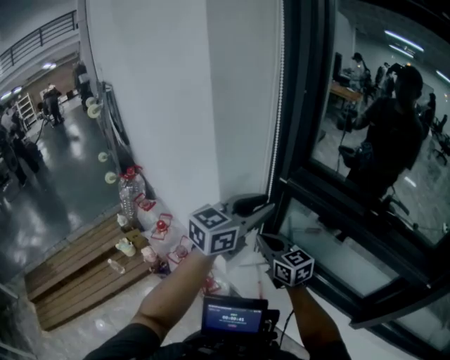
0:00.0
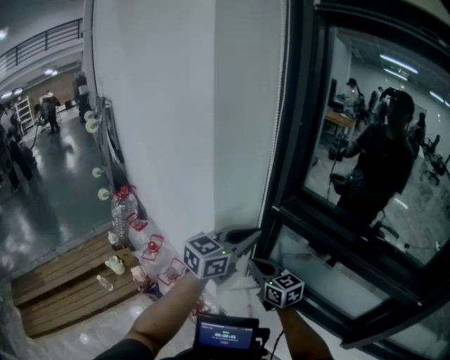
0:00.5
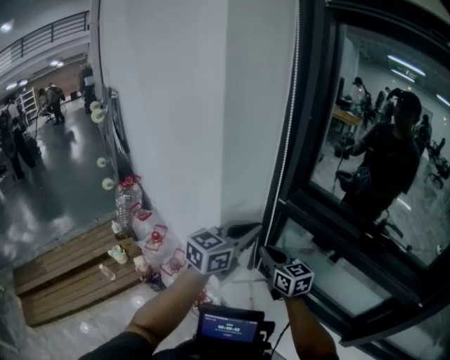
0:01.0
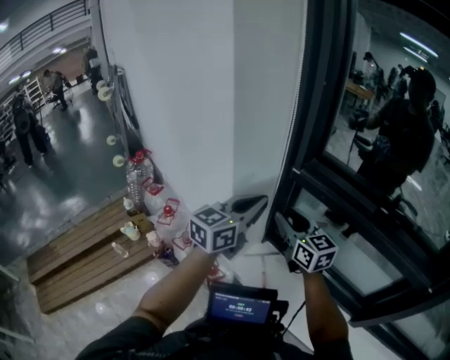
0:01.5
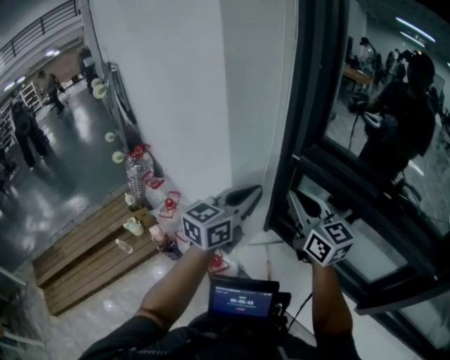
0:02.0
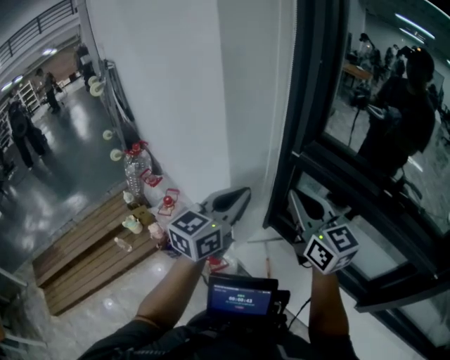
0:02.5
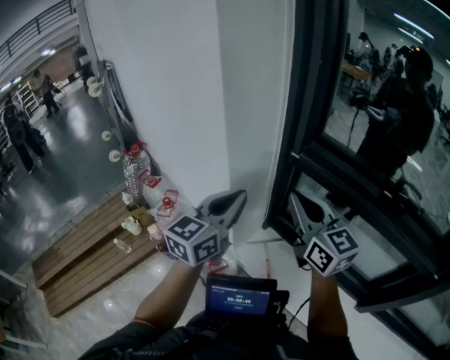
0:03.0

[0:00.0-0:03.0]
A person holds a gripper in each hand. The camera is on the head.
0:00.0 to 0:01.5: The right gripper is displaced upward by roughly 5 cm, and opens its fingers; the left gripper shifts by approximately 5 cm, and closes its fingers.
0:01.5 to 0:03.0: The right gripper heads upward, covering approximately 10 cm, and closes its fingers. The left gripper changes place by approximately 5 cm.

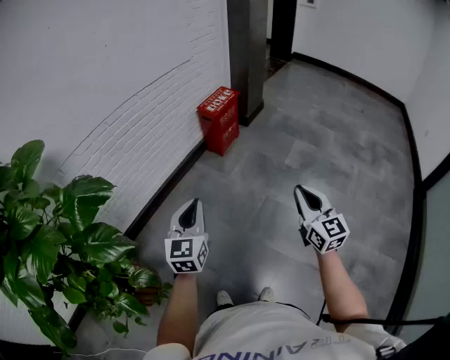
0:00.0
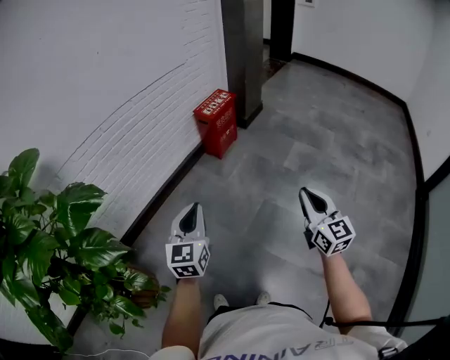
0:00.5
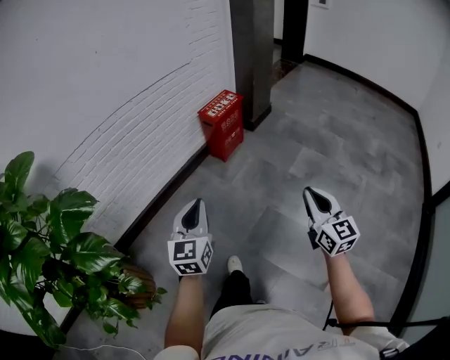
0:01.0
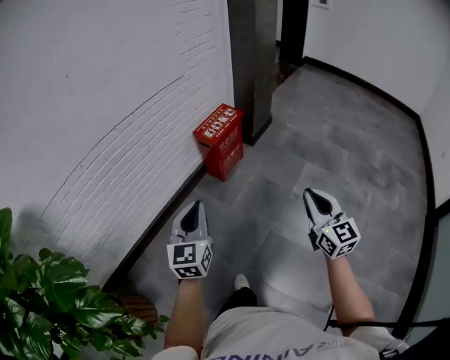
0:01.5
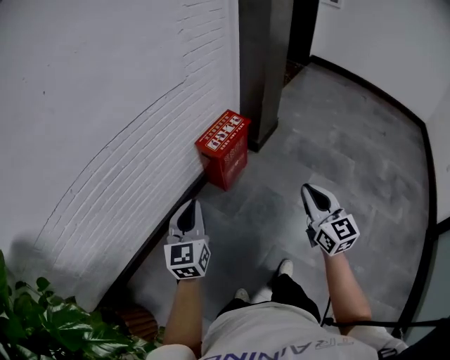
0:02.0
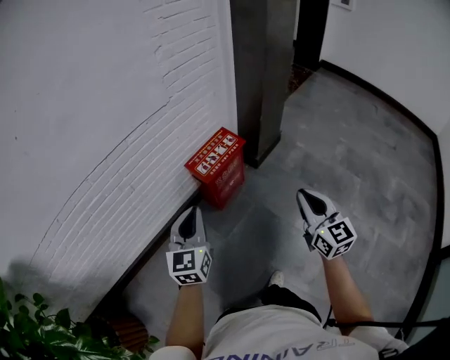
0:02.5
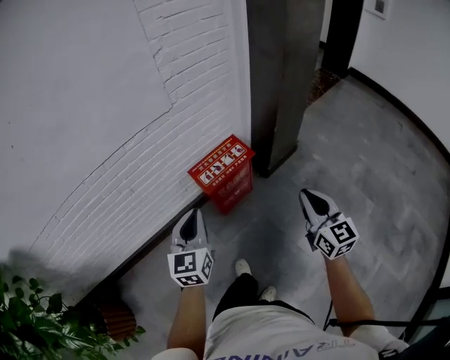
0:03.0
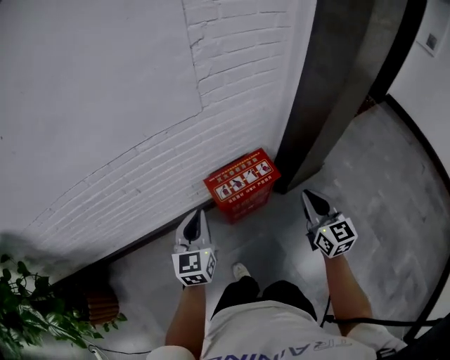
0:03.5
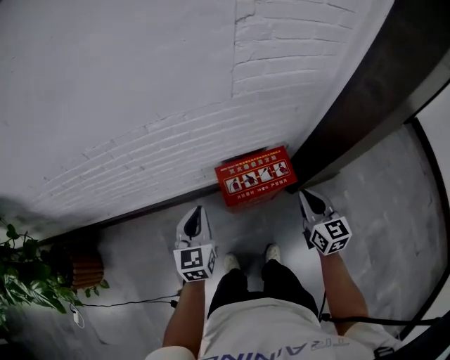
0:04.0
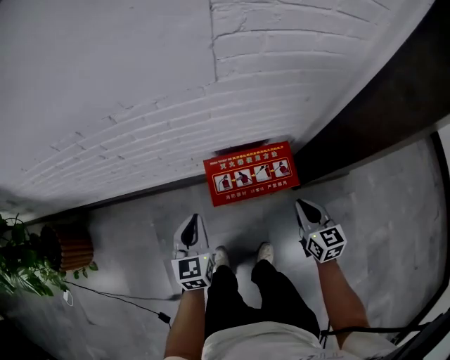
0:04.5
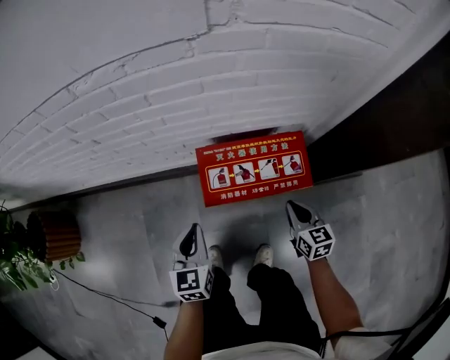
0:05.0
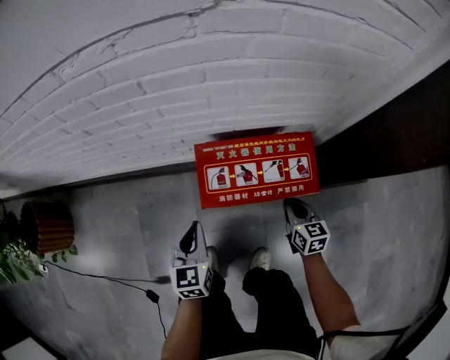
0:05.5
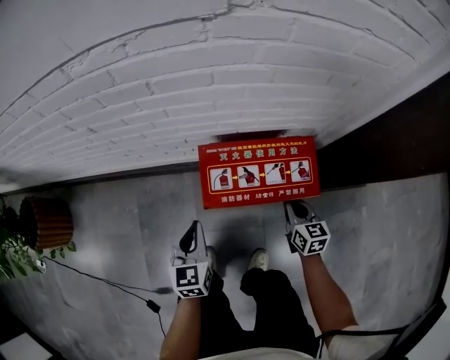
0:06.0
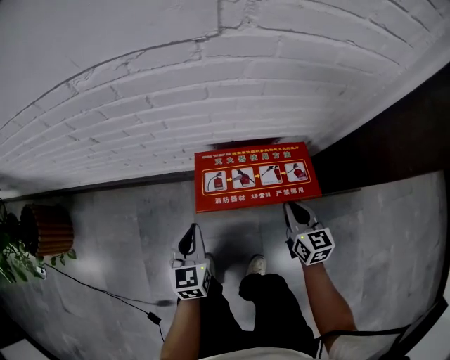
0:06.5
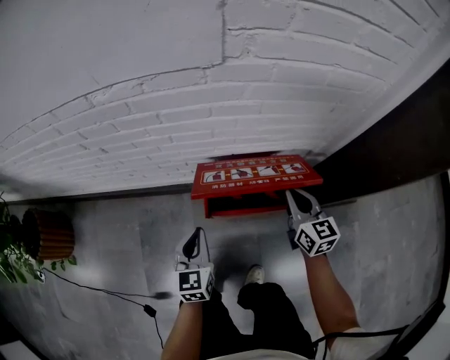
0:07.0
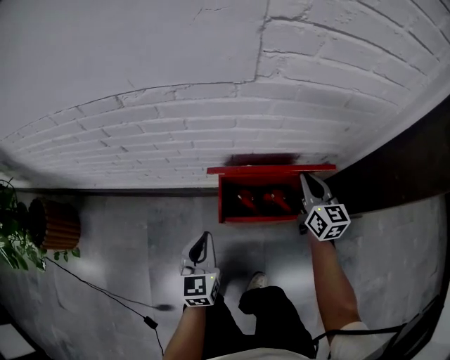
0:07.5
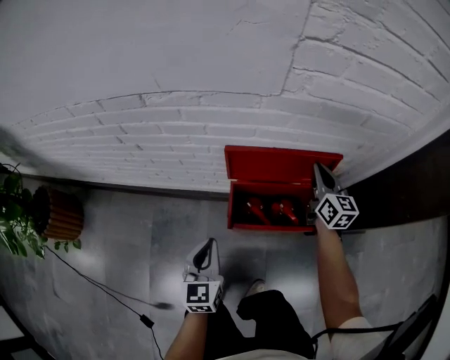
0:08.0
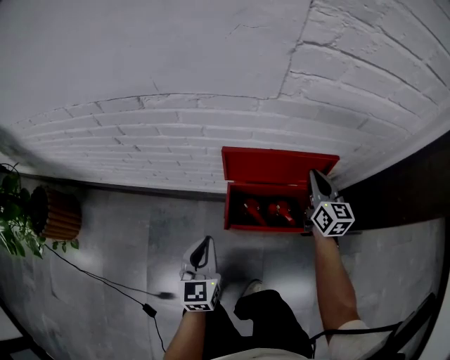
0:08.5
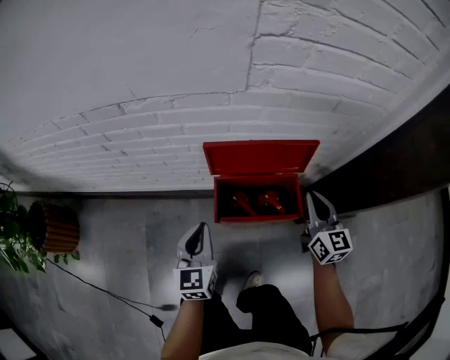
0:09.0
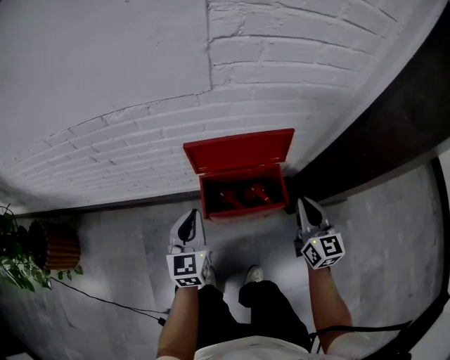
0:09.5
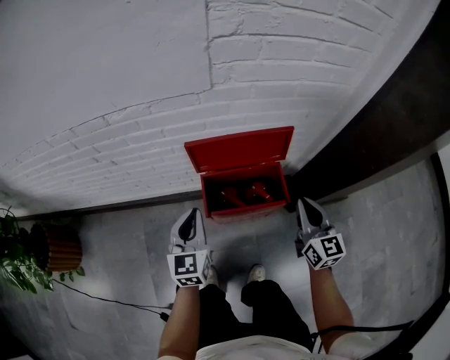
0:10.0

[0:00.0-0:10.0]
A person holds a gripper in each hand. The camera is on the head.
0:00.0 to 0:02.0: The pair of grippers is taken forward, roughly 50 cm.
0:02.0 to 0:04.0: The right gripper ends up some 60 cm from where it was, and changes its angle by roughly 40 degrees, while the left gripper shifts by roughly 40 cm, and turns by about 40 degrees.
0:04.0 to 0:06.0: The two grippers go approximately 35 cm downward.
0:06.0 to 0:08.0: The left gripper is displaced upward by roughly 10 cm. Meanwhile the right gripper shifts roughly 30 cm upward and forward, and turns by roughly 20 degrees.
0:08.0 to 0:10.0: The left gripper shifts about 5 cm upward; the right gripper travels backward by about 20 cm.

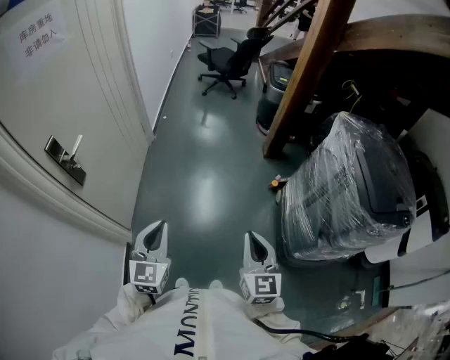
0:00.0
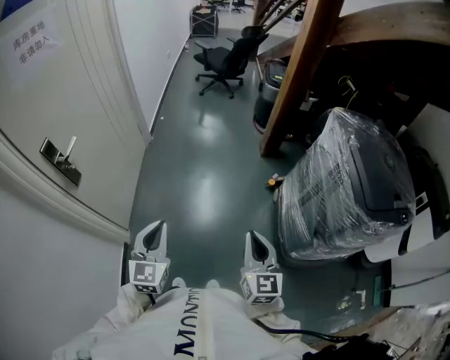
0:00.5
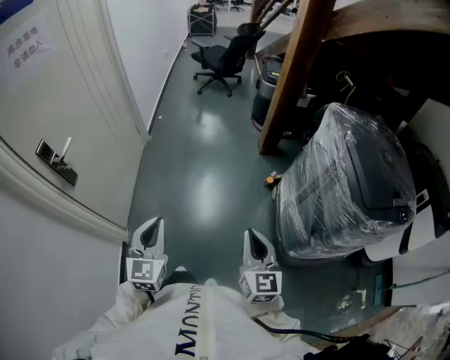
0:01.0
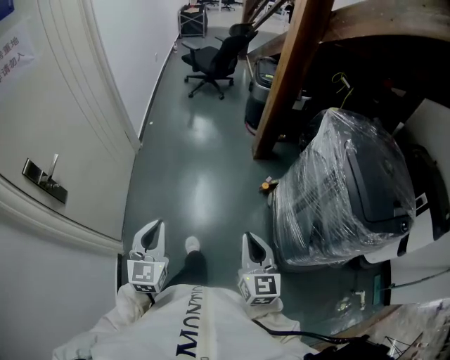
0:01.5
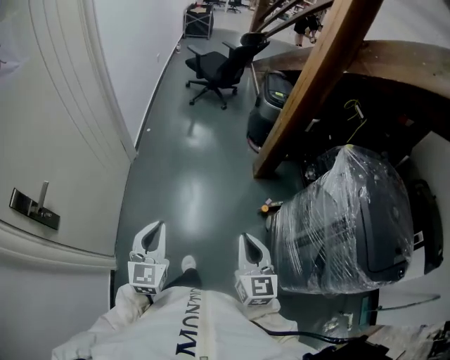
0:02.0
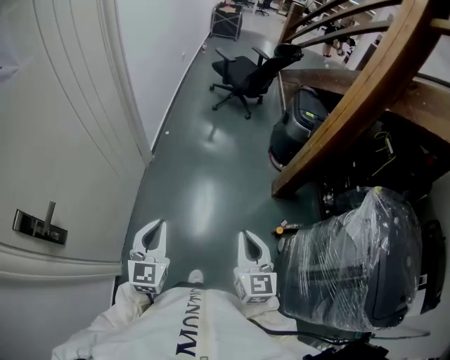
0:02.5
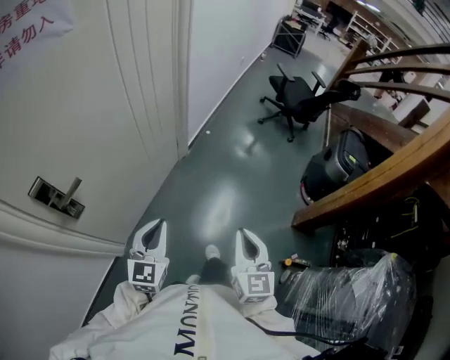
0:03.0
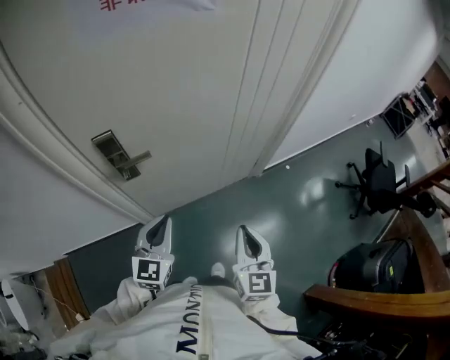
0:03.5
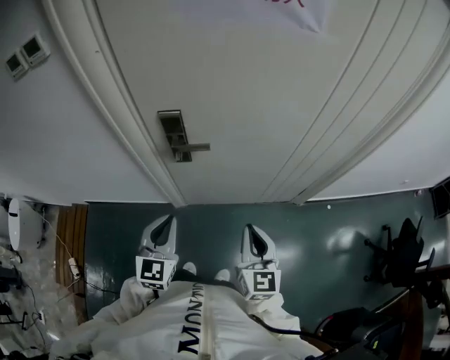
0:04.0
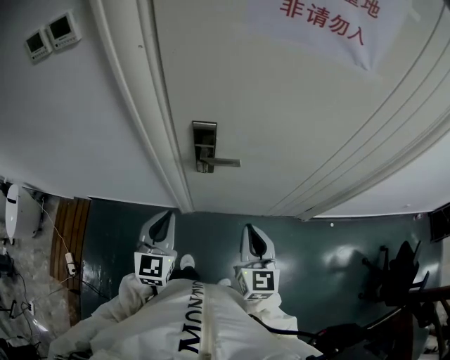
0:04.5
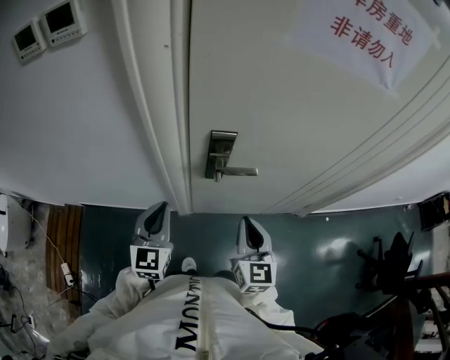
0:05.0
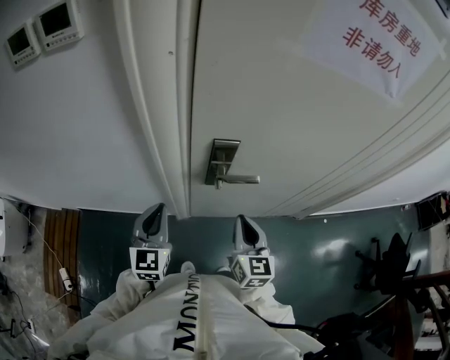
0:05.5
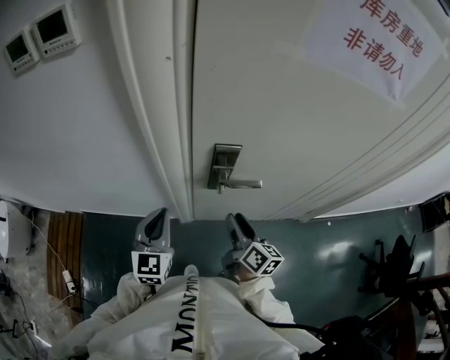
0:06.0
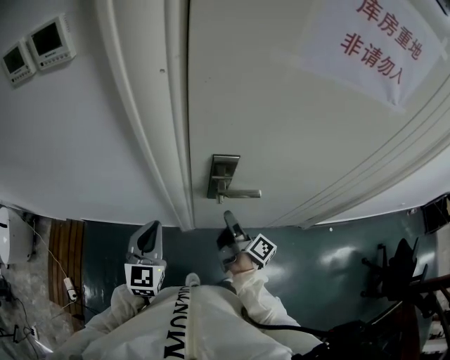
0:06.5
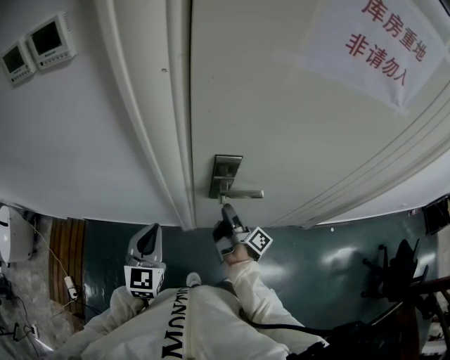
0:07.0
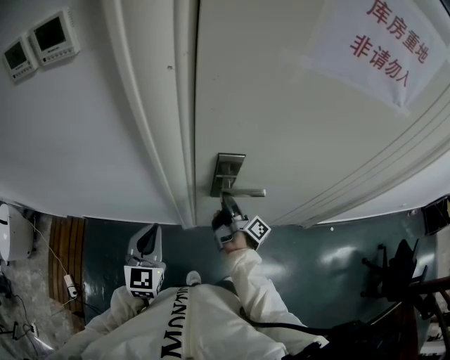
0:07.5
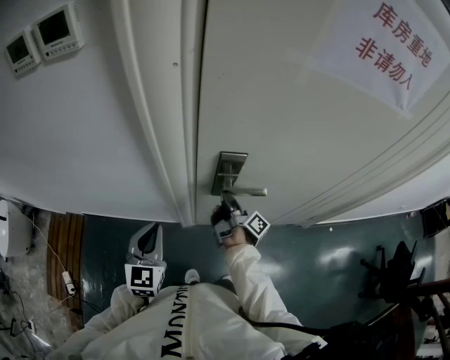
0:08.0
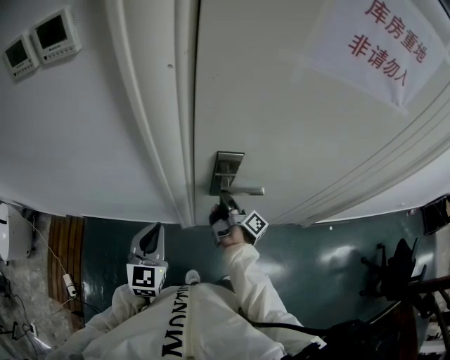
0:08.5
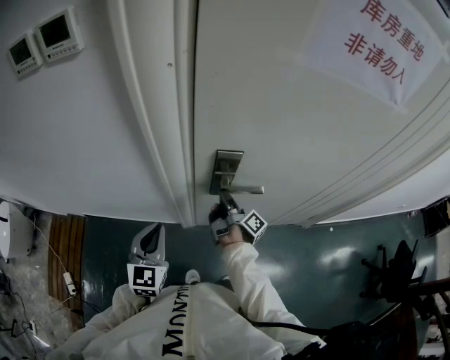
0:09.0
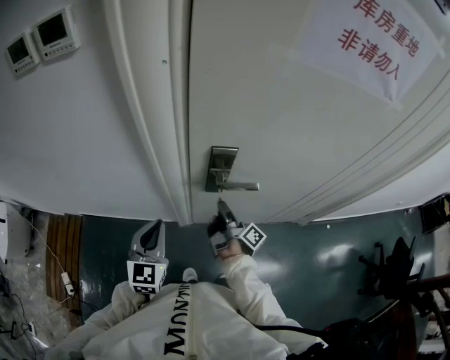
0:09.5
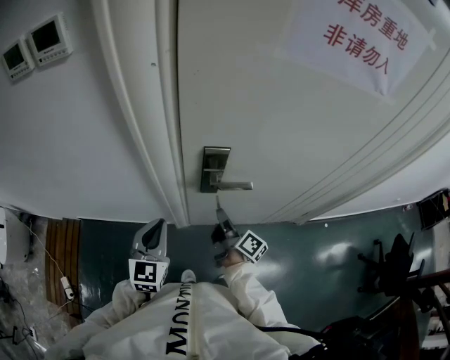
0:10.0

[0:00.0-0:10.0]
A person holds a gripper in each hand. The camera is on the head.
0:00.0 to 0:02.0: The two grippers go about 20 cm forward.
0:02.0 to 0:04.0: The left gripper moves roughly 25 cm, and rotates about 80 degrees. Meanwhile the right gripper ends up roughly 50 cm from where it was, and swivels roughly 90 degrees.
0:04.0 to 0:06.0: The grippers both shift to the left and forward by approximately 20 cm. The right gripper rotates roughly 40 degrees, and opens its fingers.
0:06.0 to 0:08.0: The right gripper is displaced forward and downward by some 15 cm, and twists some 50 degrees clockwise, seen from behind.
0:08.0 to 0:10.0: The right gripper heads backward, covering some 10 cm, and swivels about 20 degrees.

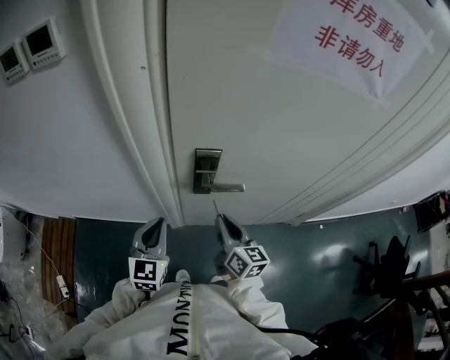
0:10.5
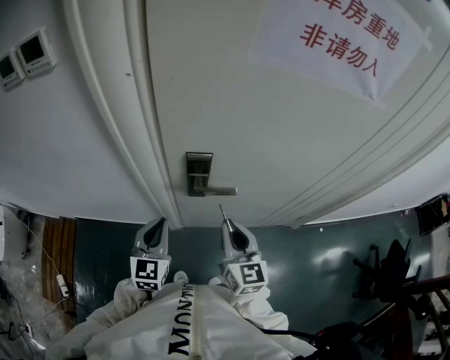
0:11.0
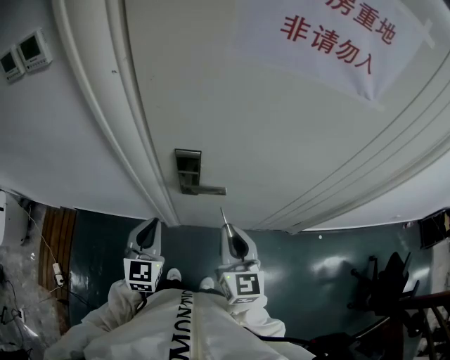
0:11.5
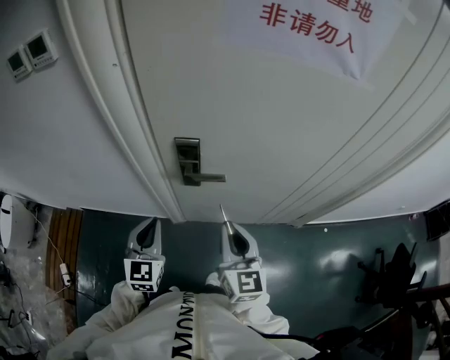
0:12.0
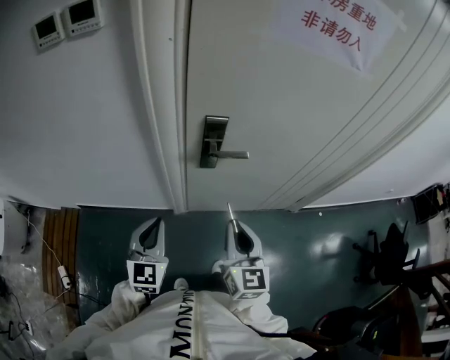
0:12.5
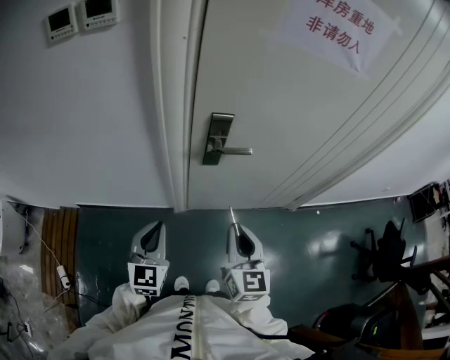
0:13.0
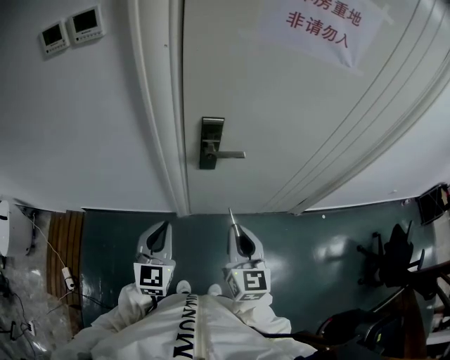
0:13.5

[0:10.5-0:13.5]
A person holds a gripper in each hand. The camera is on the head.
0:10.5 to 0:12.0: The left gripper ends up approximately 5 cm from where it was; the right gripper shifts about 15 cm upward, backward and to the right, and rotates some 20 degrees.
0:12.0 to 0:13.5: The right gripper heads backward and to the left, covering roughly 10 cm. Meanwhile the left gripper goes roughly 10 cm backward.
